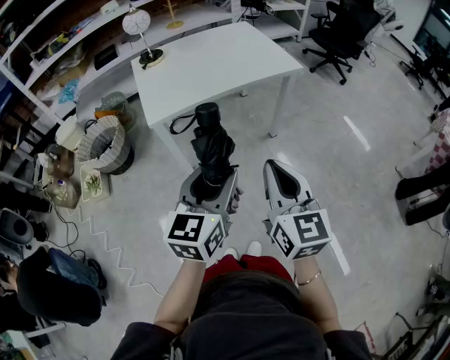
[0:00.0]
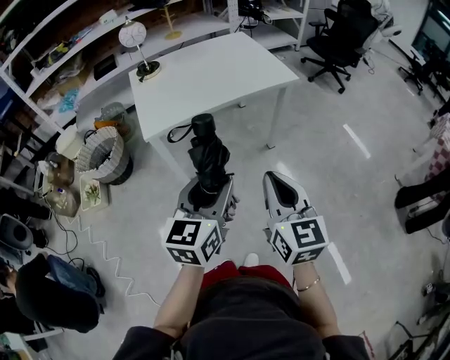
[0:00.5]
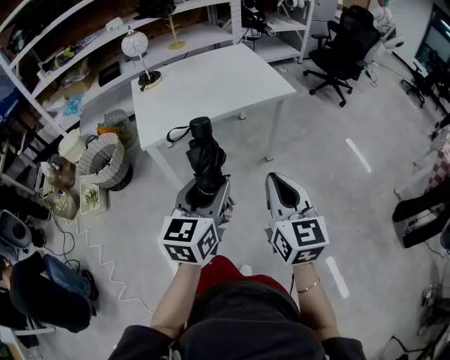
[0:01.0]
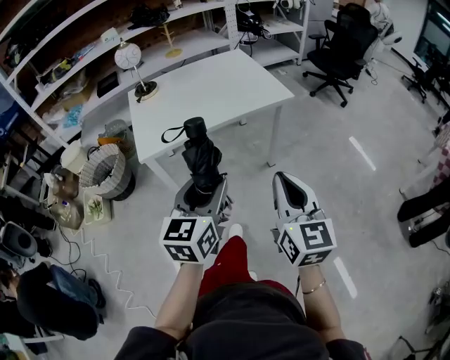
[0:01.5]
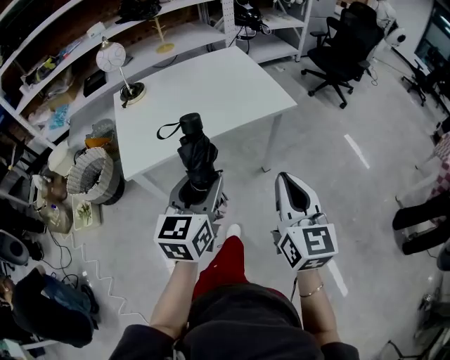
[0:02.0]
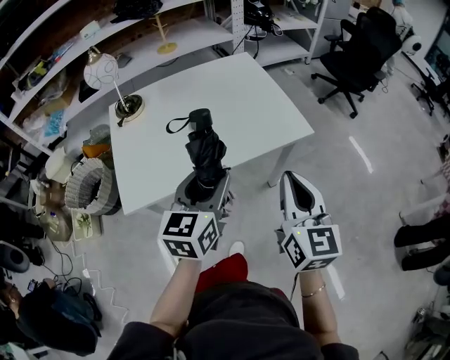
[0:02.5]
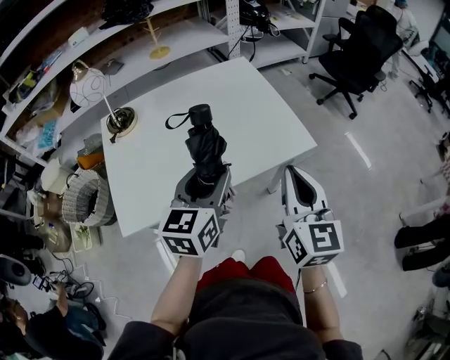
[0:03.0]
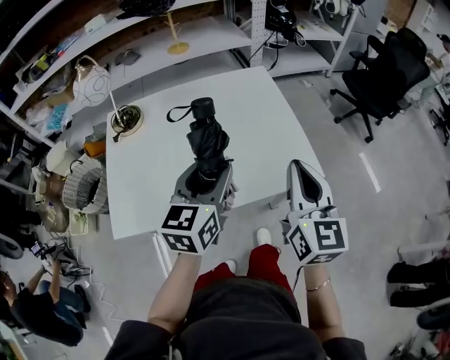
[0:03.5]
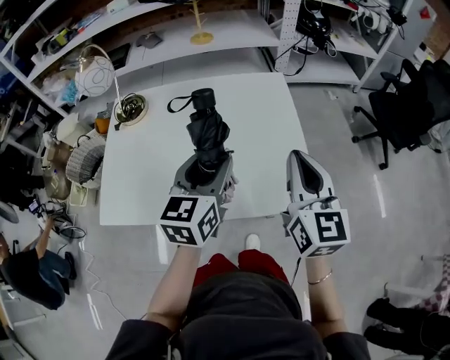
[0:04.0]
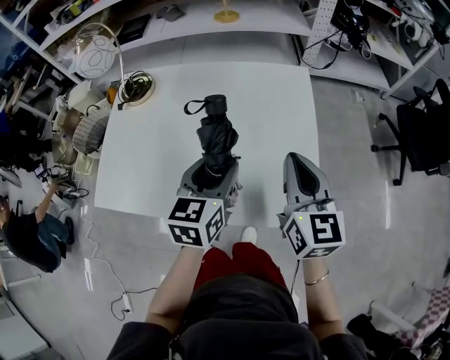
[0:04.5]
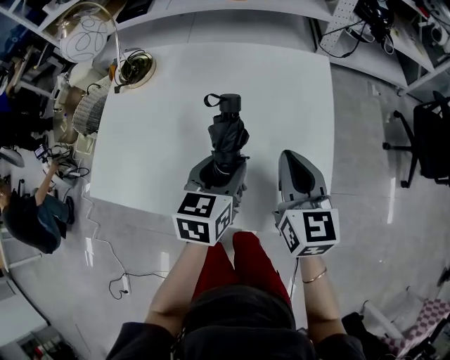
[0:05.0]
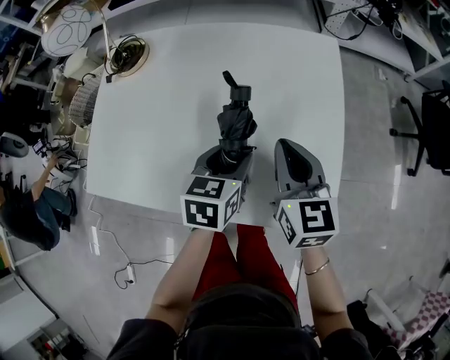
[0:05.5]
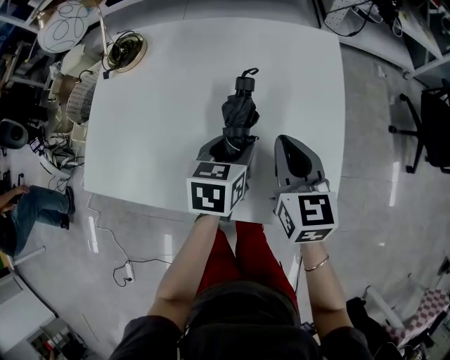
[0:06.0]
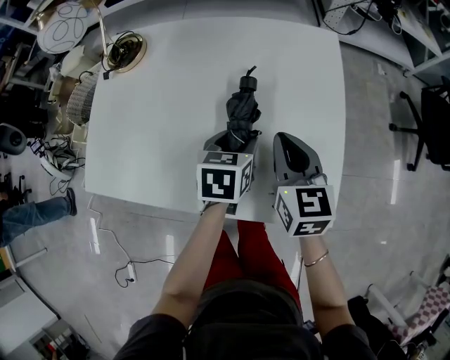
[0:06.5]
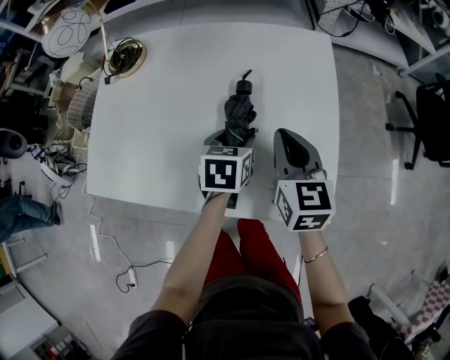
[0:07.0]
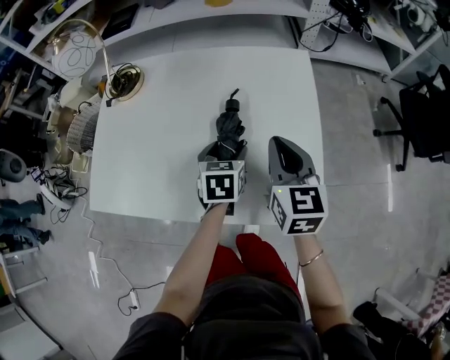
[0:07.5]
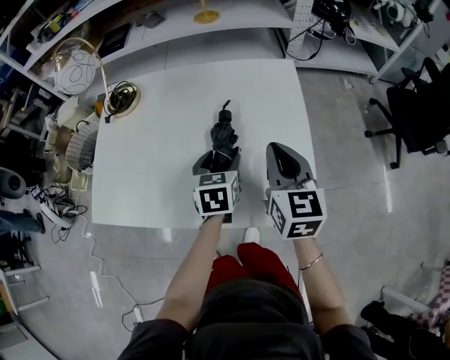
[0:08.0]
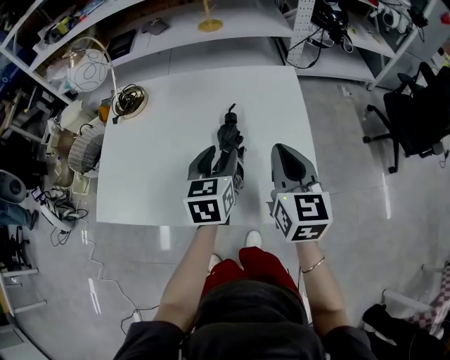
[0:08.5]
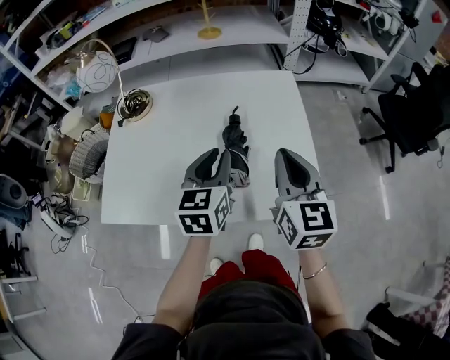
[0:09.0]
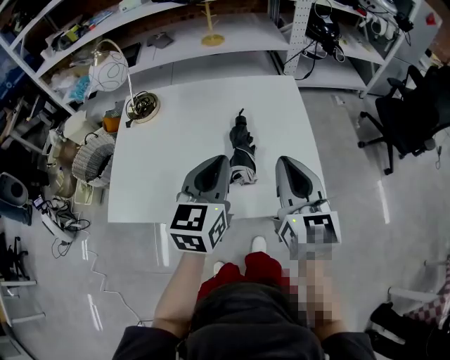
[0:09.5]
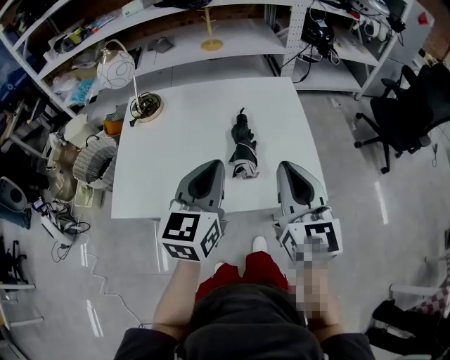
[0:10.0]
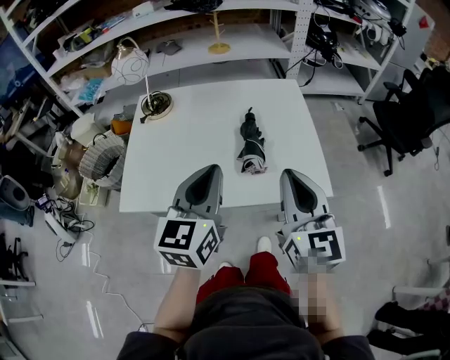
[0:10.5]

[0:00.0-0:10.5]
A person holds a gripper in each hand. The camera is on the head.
0:00.0 to 0:02.0: The right gripper travels forward and to the right by some 20 cm. Meanwhile the left gripper goes some 20 cm forward.
0:02.0 to 0:04.0: The pair of grippers is taken forward, about 50 cm.
0:04.0 to 0:06.5: Both grippers travel together downward and forward, roughly 25 cm. The left gripper points its fingers approximately 30 degrees further downward. Meanwhile the right gripper turns by some 30 degrees.
0:06.5 to 0:08.5: Both grippers move upward, approximately 10 cm. The left gripper swivels approximately 20 degrees.
0:08.5 to 0:10.5: The left gripper goes about 25 cm backward, upward and to the left, changes its angle by about 20 degrees, and closes its fingers. The right gripper goes some 20 cm backward and upward.

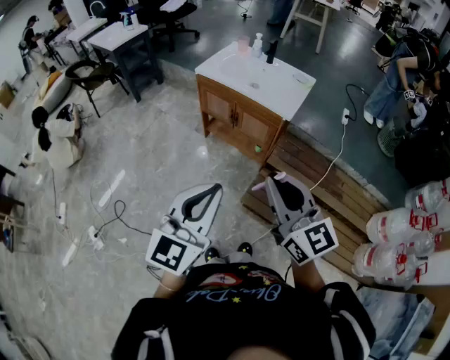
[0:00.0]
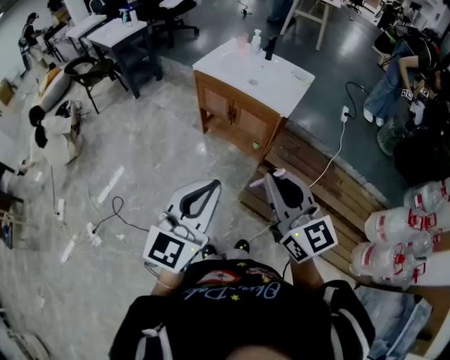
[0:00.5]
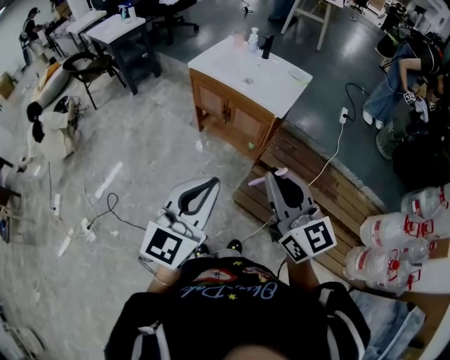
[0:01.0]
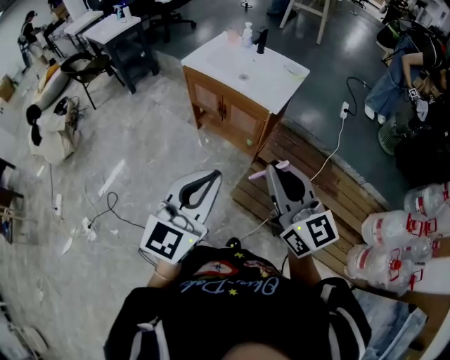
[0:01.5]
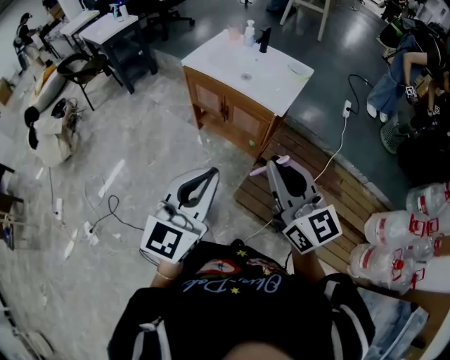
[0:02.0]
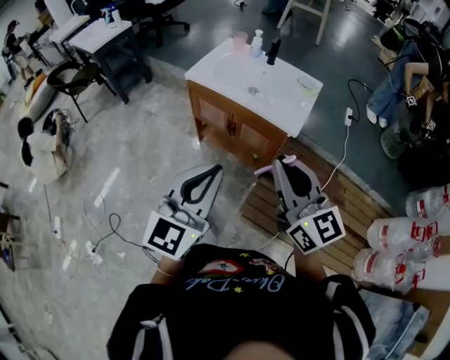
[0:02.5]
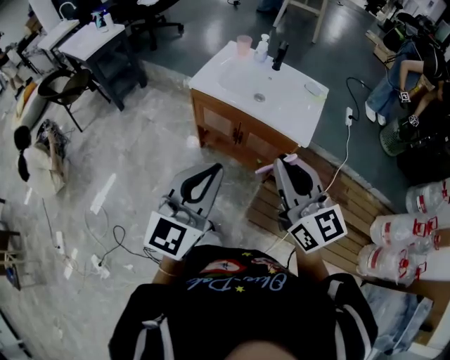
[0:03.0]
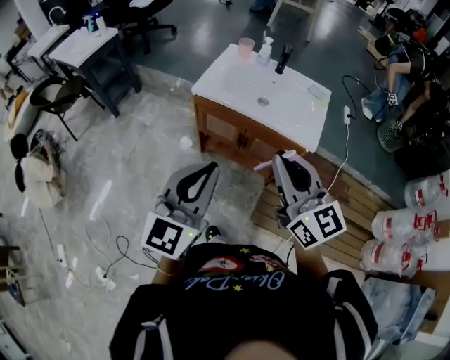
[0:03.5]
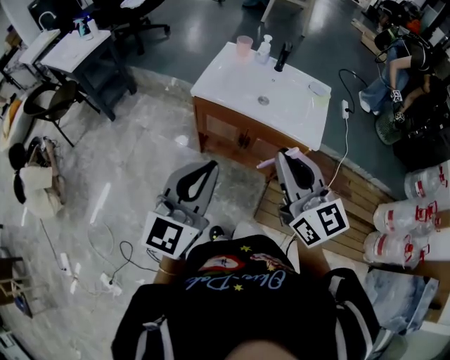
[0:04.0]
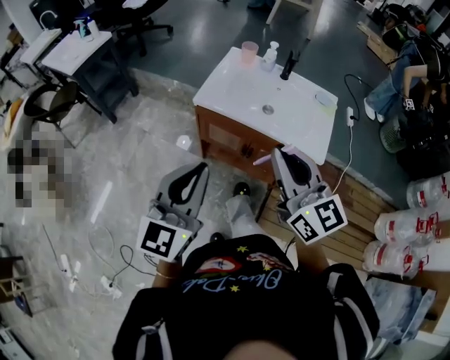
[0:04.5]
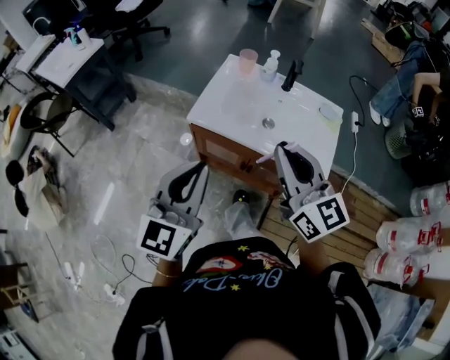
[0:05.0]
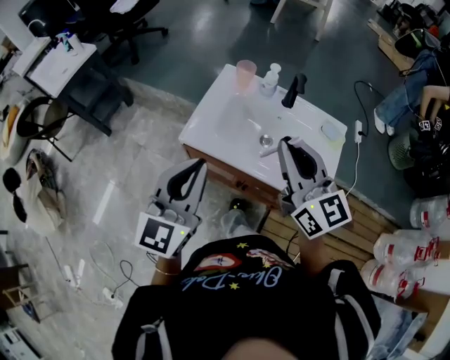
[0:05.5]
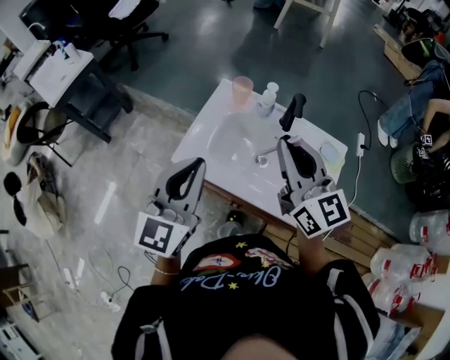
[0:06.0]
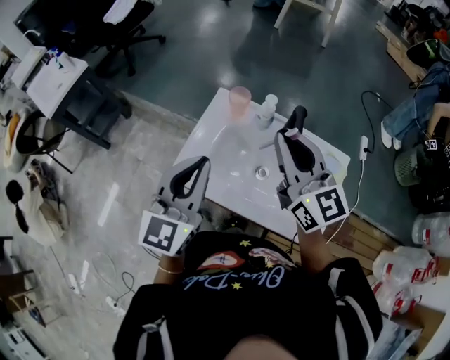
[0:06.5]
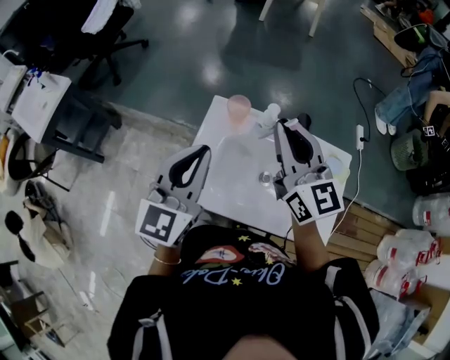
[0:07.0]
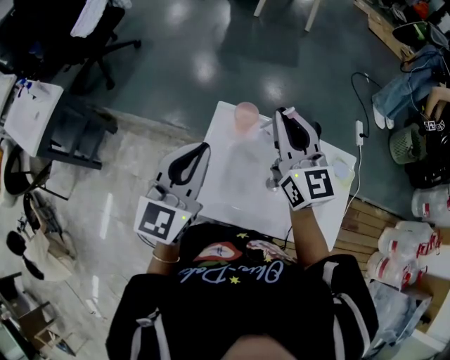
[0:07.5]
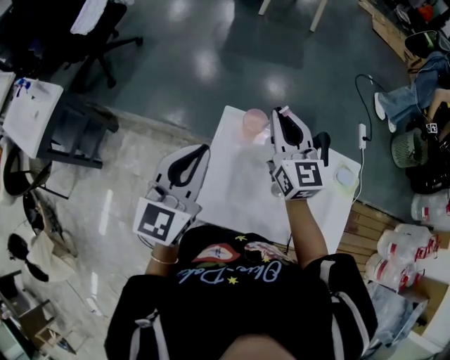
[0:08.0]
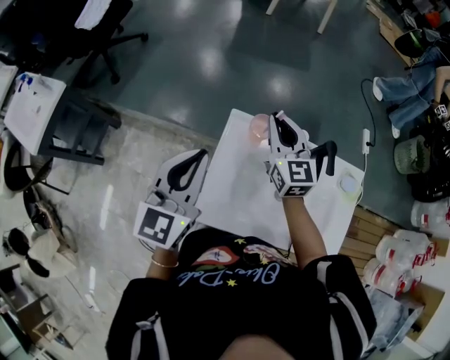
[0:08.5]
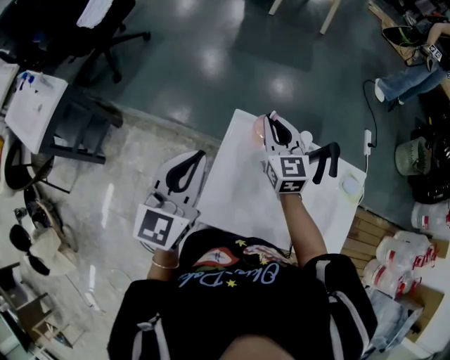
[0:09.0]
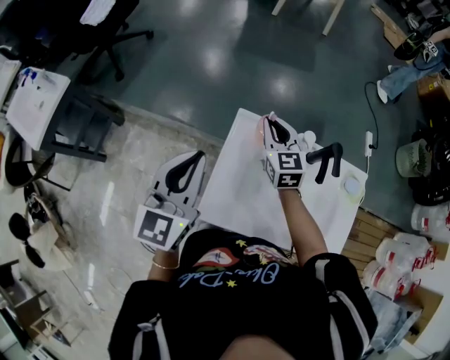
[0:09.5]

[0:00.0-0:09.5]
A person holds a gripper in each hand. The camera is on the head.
0:00.0 to 0:02.0: Both grippers move forward and to the right, some 10 cm.
0:02.0 to 0:04.0: The left gripper goes some 35 cm to the left and forward, while the right gripper goes roughly 30 cm forward and to the left.
0:04.0 to 0:05.5: Both grippers travel together forward, roughly 25 cm.
0:05.5 to 0:07.5: Both grippers travel together forward, about 25 cm.
0:07.5 to 0:09.5: The left gripper goes approximately 5 cm to the left; the right gripper moves downward and forward, roughly 20 cm, and rotates about 20 degrees.

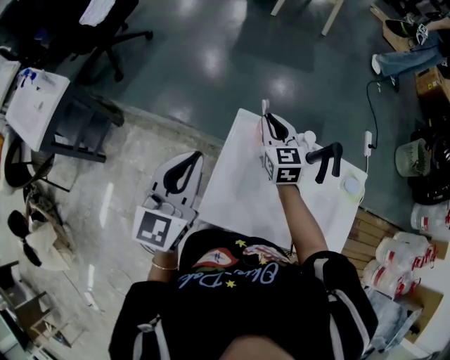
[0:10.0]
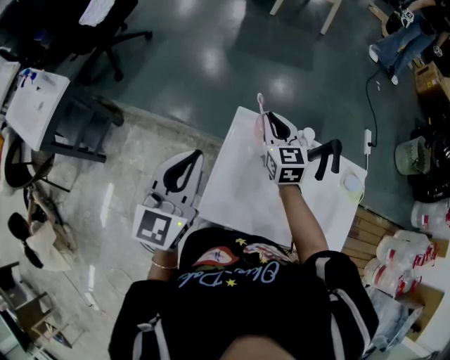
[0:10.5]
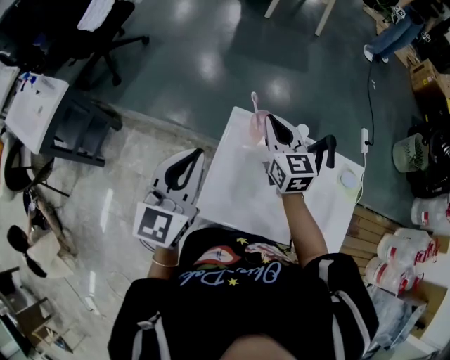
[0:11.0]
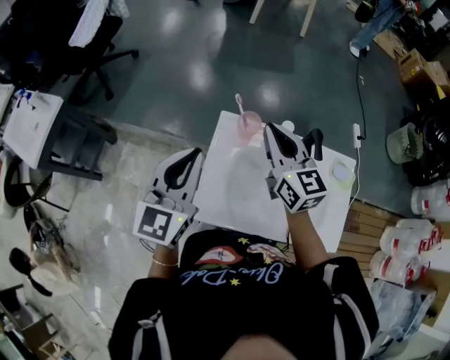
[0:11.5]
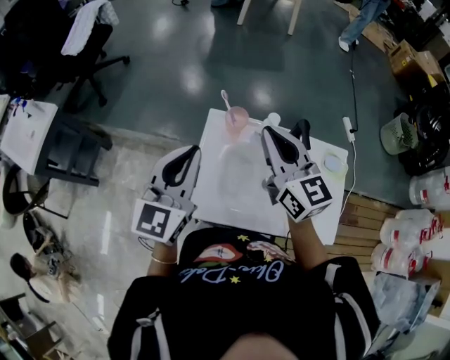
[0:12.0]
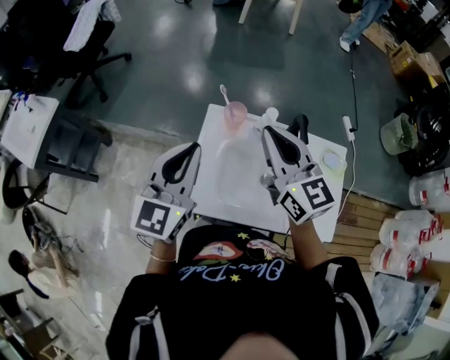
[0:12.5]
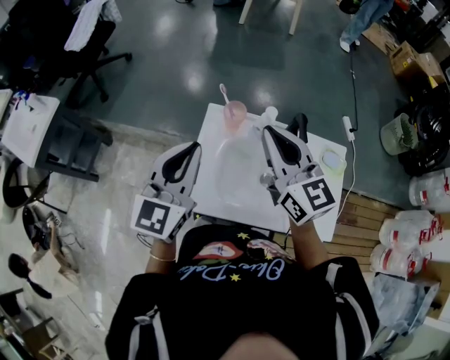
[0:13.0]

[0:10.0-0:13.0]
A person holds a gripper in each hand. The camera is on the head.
0:10.0 to 0:11.5: The right gripper heads upward and backward, covering approximately 15 cm.
0:11.5 to 0:13.0: The left gripper moves approximately 5 cm; the right gripper travels backward and upward by roughly 10 cm.

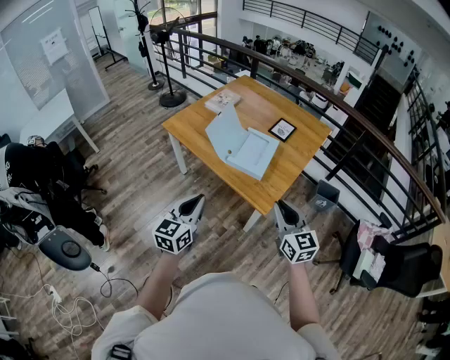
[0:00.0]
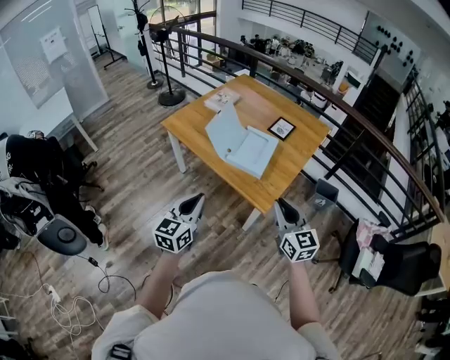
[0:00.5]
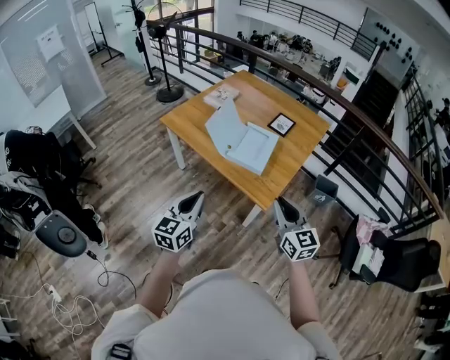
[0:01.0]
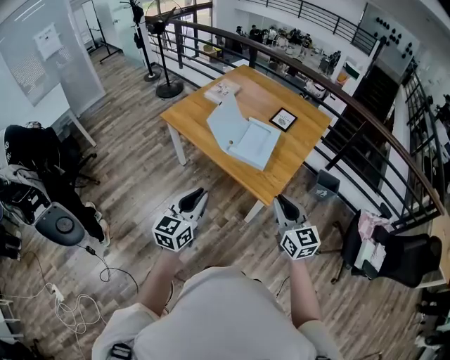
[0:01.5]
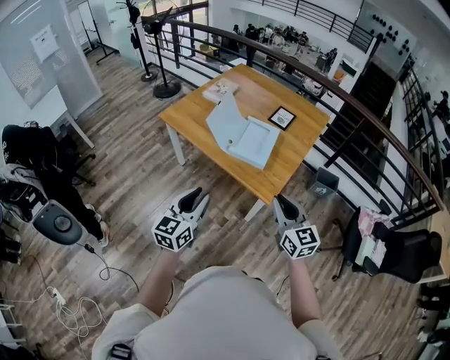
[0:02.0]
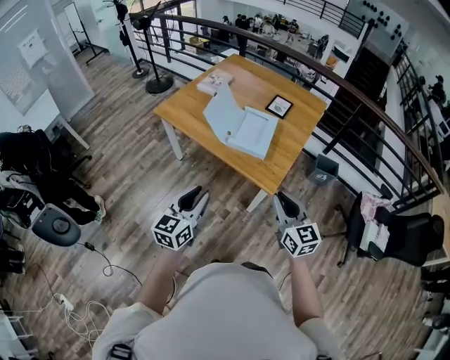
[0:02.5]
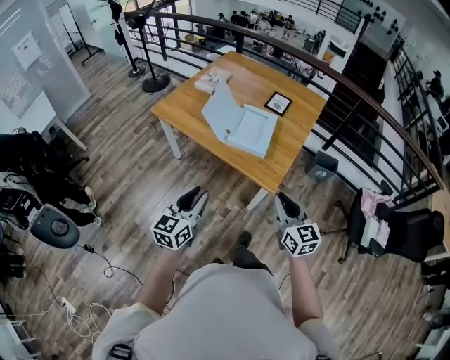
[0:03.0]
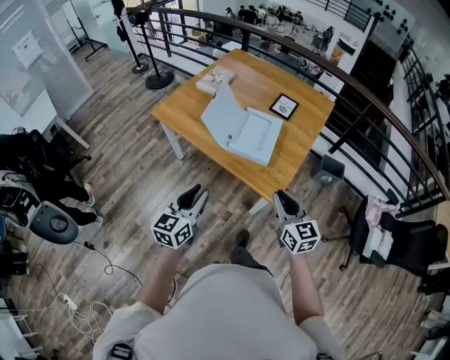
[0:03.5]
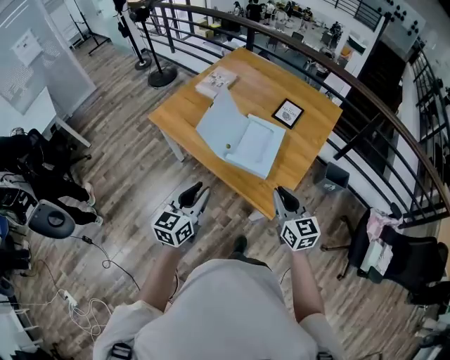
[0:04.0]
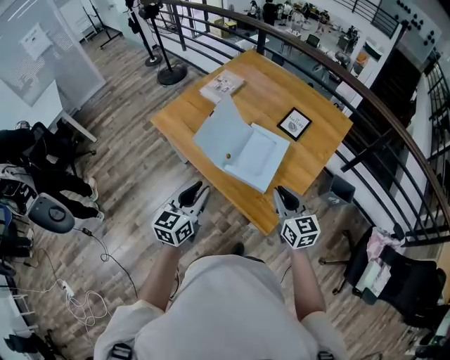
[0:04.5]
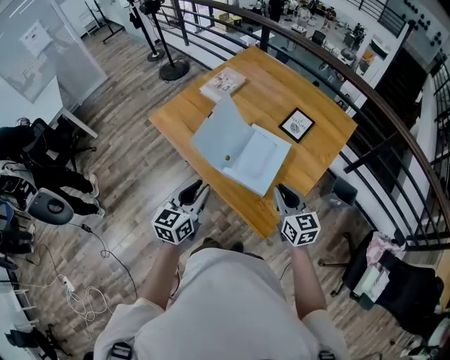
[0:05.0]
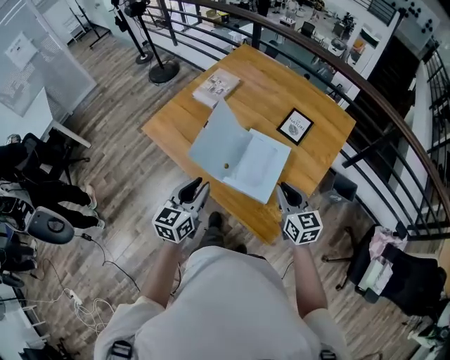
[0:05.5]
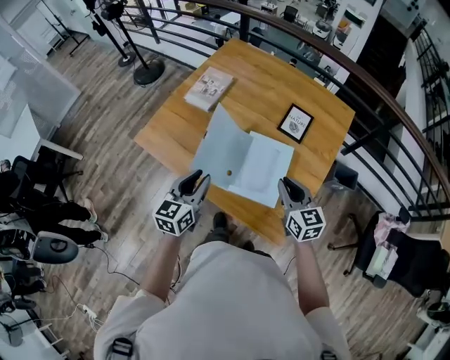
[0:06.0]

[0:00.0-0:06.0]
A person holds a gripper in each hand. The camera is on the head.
0:00.0 to 0:02.0: The left gripper opens up.
0:02.0 to 0:04.0: Both grippers move forward, roughly 20 cm.
0:04.0 to 0:06.0: The grippers both shift forward by approximately 25 cm.
